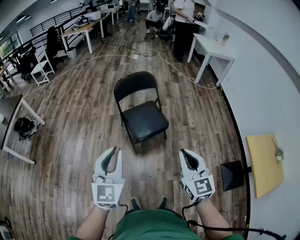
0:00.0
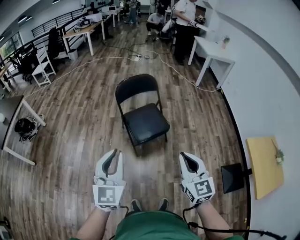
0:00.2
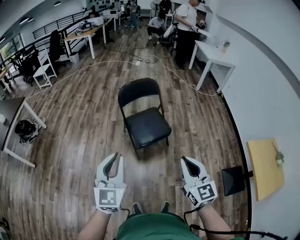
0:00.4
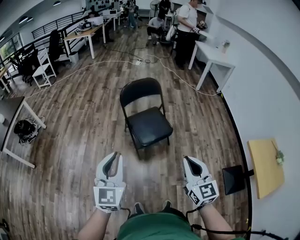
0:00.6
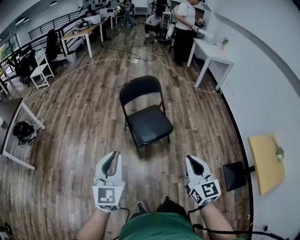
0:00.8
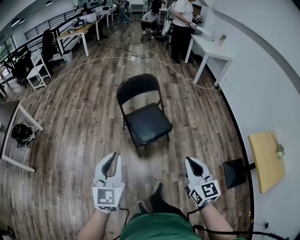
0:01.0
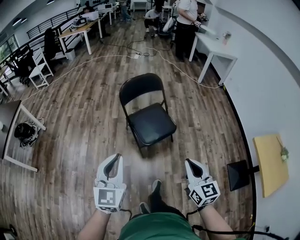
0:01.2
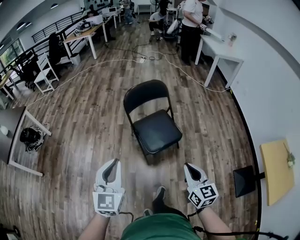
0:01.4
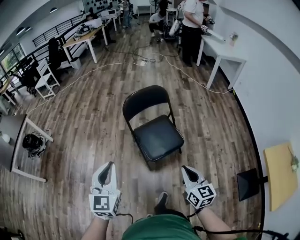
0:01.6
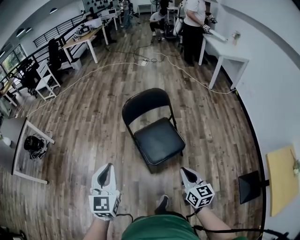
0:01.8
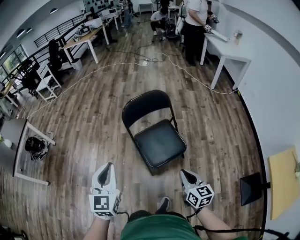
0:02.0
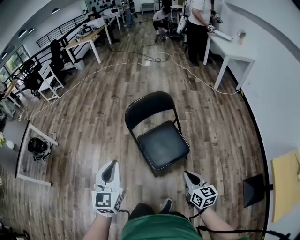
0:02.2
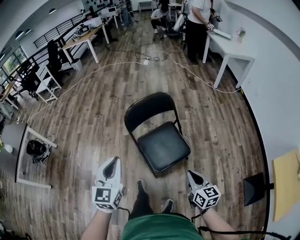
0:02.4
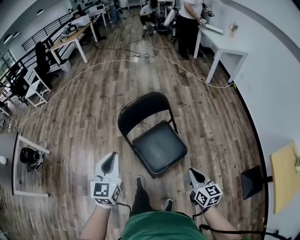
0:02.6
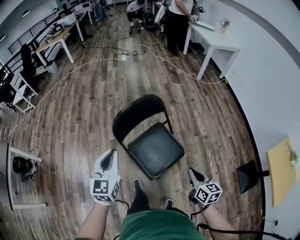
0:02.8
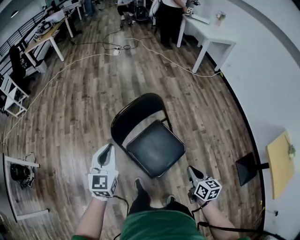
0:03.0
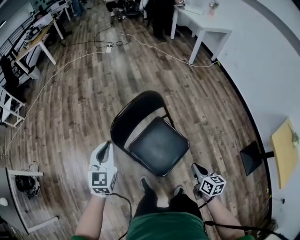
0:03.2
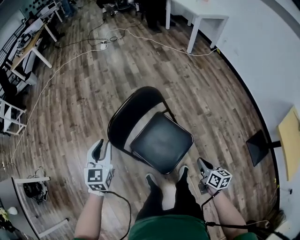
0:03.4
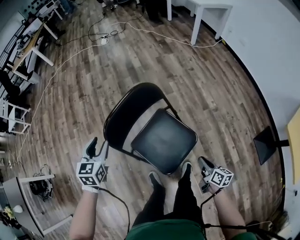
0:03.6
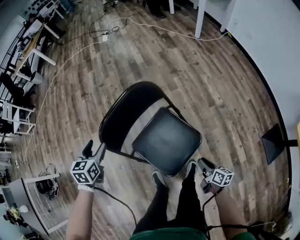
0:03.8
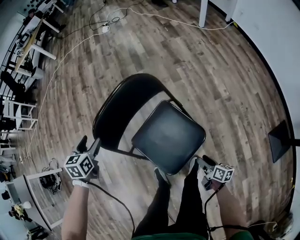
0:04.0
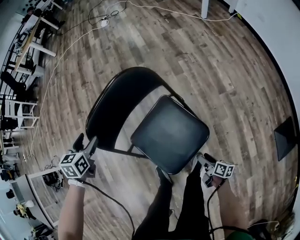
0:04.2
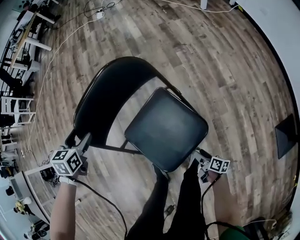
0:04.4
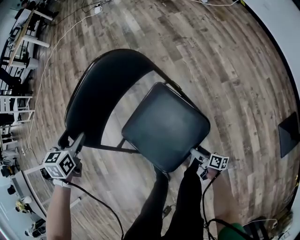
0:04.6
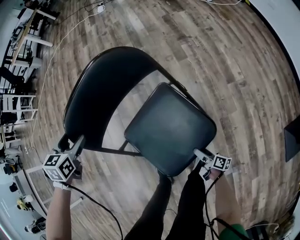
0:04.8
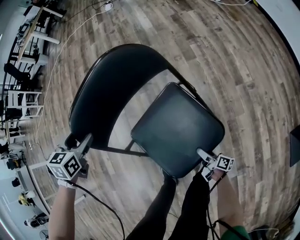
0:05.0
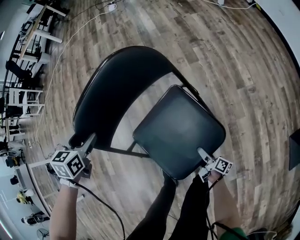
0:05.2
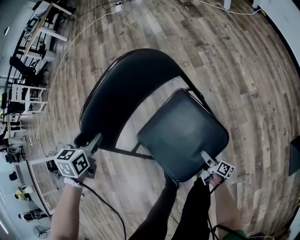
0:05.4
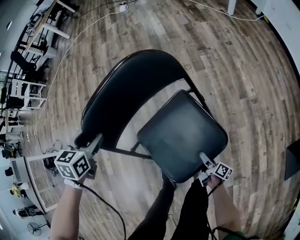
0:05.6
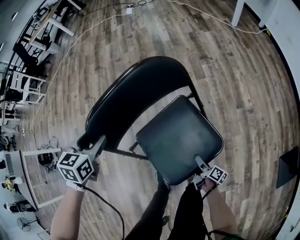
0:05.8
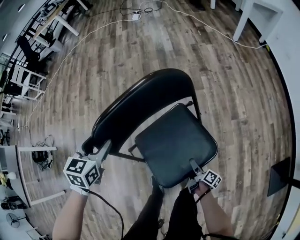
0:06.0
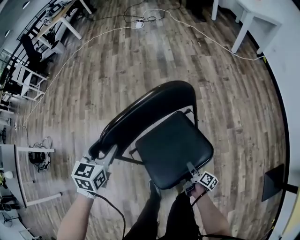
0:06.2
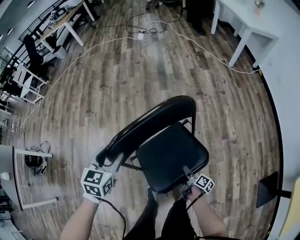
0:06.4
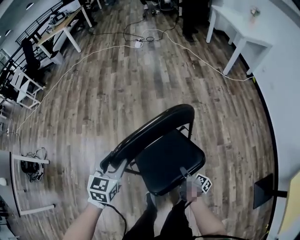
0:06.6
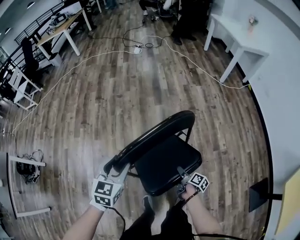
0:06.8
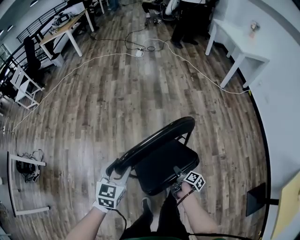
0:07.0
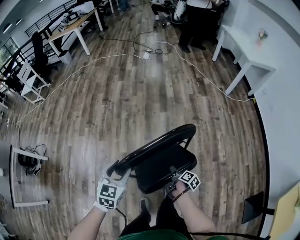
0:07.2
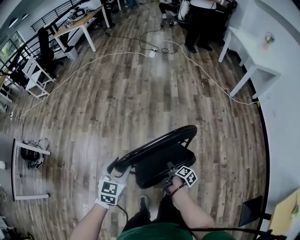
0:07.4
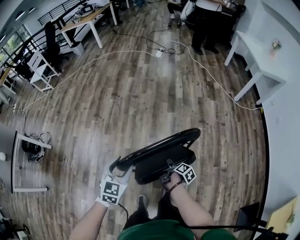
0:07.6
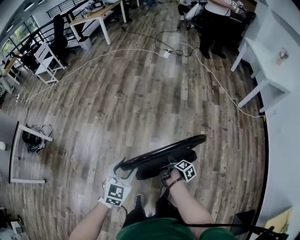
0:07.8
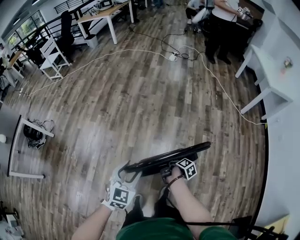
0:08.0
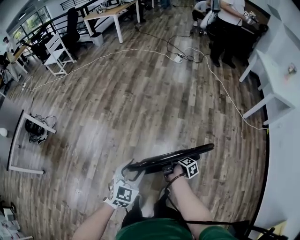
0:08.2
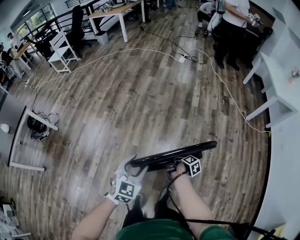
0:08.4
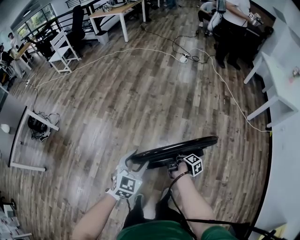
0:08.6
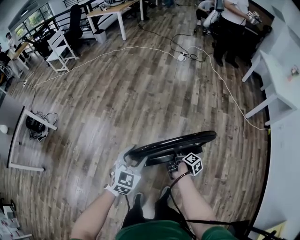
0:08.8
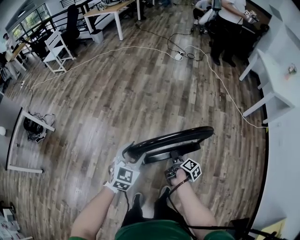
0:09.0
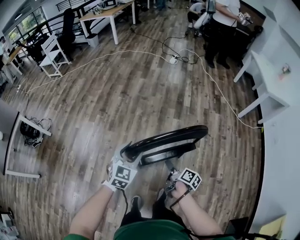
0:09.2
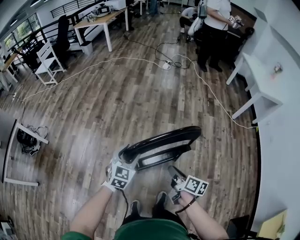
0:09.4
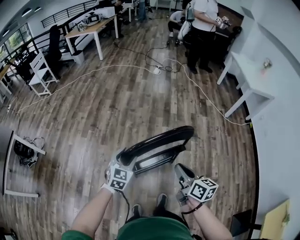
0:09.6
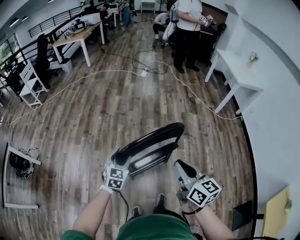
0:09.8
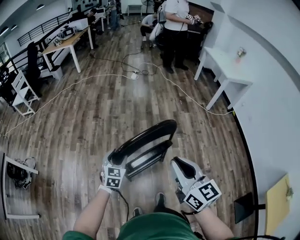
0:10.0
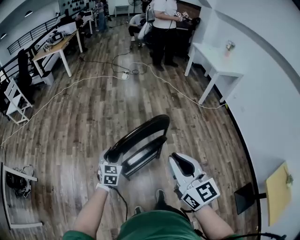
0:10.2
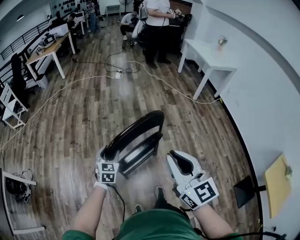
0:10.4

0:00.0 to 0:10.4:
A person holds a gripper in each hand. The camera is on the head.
0:00.0 to 0:01.4: The left gripper goes about 15 cm forward and to the left, while the right gripper travels forward and downward by about 15 cm.
0:01.4 to 0:03.0: The left gripper heads forward, covering some 50 cm, while the right gripper shifts about 35 cm forward and downward, and turns by approximately 30 degrees.
0:03.0 to 0:04.4: The right gripper travels downward by roughly 50 cm, rotates around the line of its fingers by approximately 40 degrees, clockwise from behind, and opens. Meanwhile the left gripper heads downward and forward, covering approximately 35 cm, angles its fingers downward, by roughly 40 degrees, and opens its fingers.
0:04.4 to 0:06.0: The right gripper is displaced forward and to the left by roughly 10 cm, and travels downward and back again, about 10 cm each way.
0:06.0 to 0:07.4: The left gripper travels upward by approximately 15 cm; the right gripper is displaced upward, forward and to the left by roughly 30 cm.
0:07.4 to 0:09.0: The left gripper ends up some 5 cm from where it was. The right gripper travels forward, to the left and upward by about 15 cm.
0:09.0 to 0:10.4: The right gripper travels upward by roughly 50 cm, rotates around the line of its fingers by about 80 degrees, counterclockwise from behind, and closes.

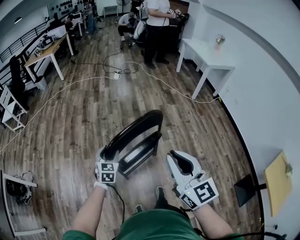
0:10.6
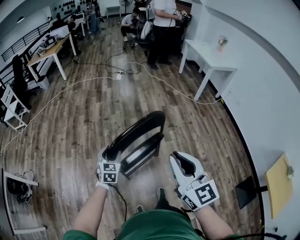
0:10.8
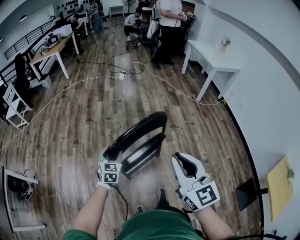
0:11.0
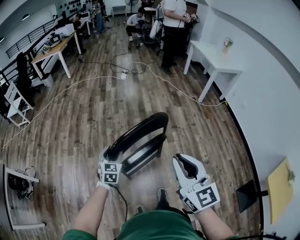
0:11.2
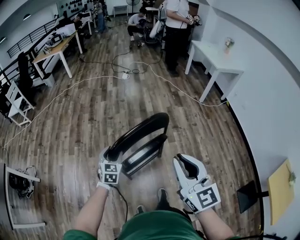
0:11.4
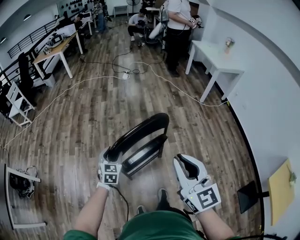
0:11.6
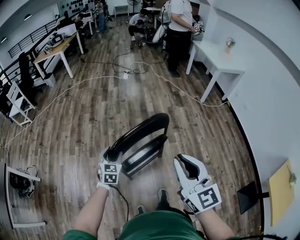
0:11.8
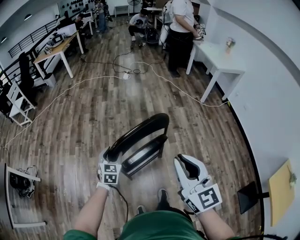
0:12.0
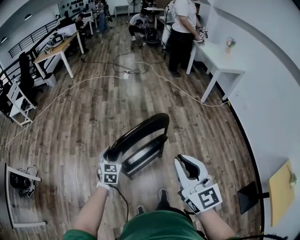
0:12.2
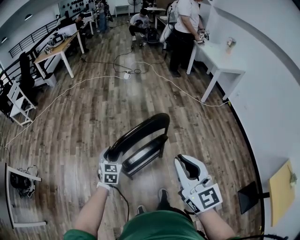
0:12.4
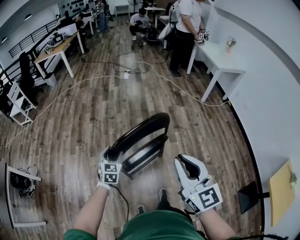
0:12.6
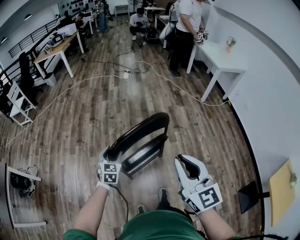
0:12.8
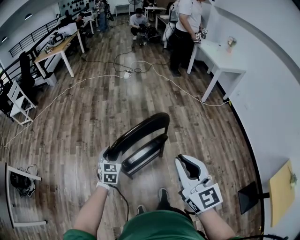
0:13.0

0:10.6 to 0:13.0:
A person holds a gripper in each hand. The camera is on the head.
0:10.6 to 0:11.8: There are only small adjustments of the grippers.
0:11.8 to 0:13.0: Neither gripper changes place.

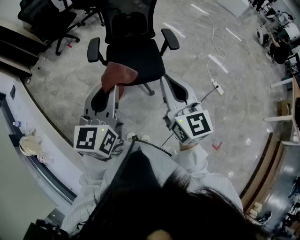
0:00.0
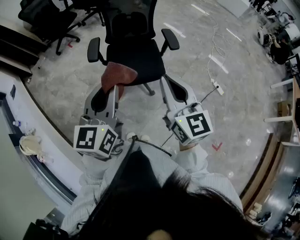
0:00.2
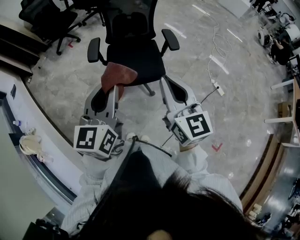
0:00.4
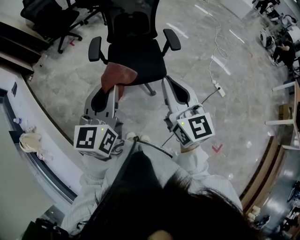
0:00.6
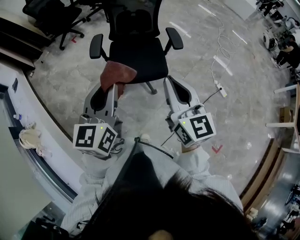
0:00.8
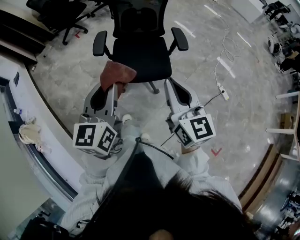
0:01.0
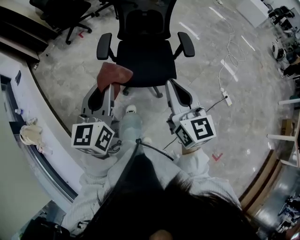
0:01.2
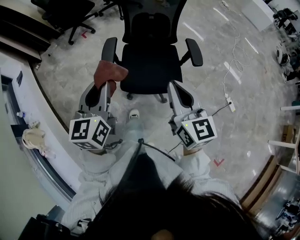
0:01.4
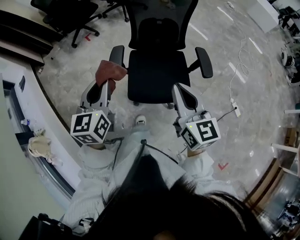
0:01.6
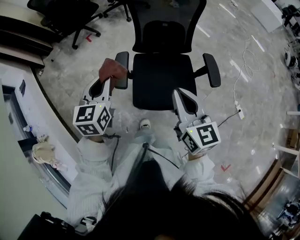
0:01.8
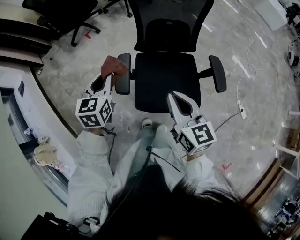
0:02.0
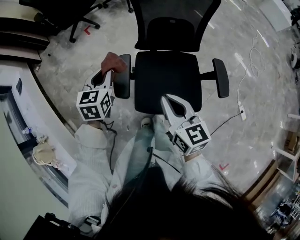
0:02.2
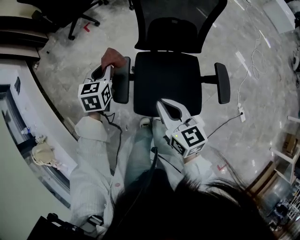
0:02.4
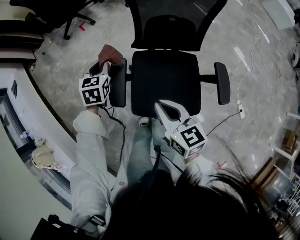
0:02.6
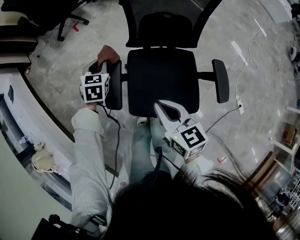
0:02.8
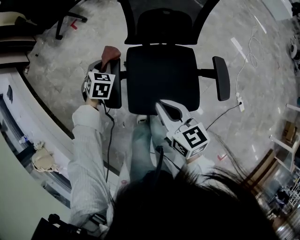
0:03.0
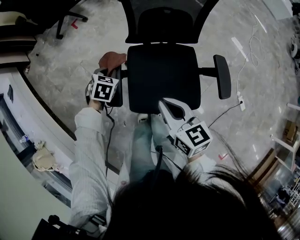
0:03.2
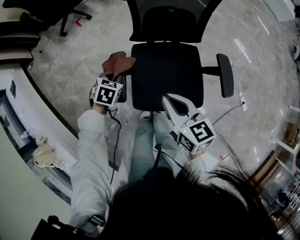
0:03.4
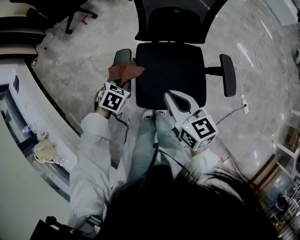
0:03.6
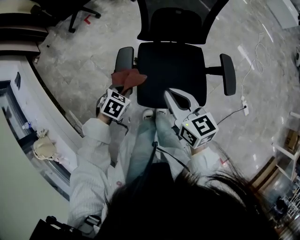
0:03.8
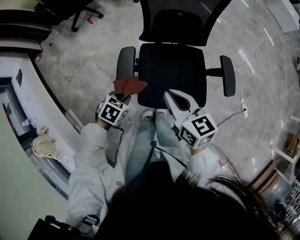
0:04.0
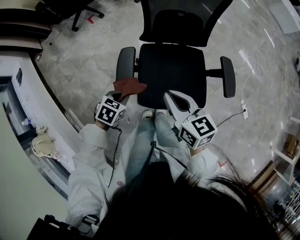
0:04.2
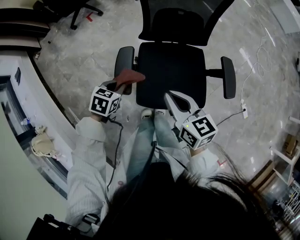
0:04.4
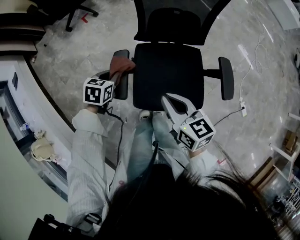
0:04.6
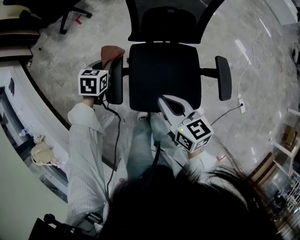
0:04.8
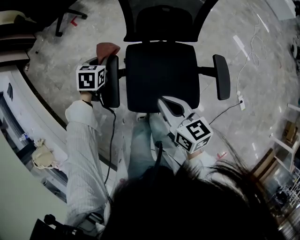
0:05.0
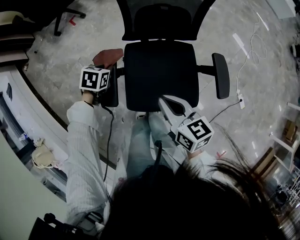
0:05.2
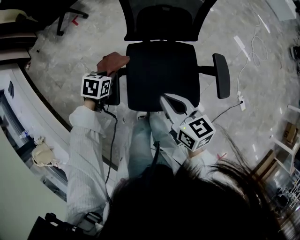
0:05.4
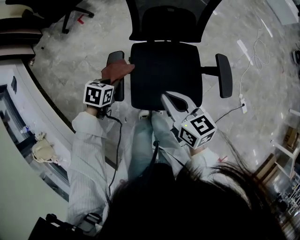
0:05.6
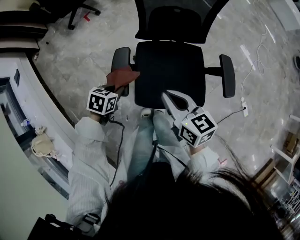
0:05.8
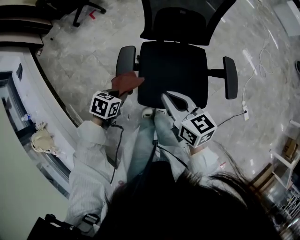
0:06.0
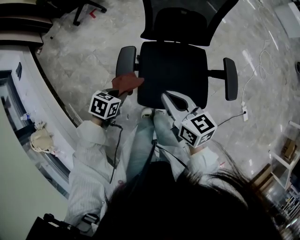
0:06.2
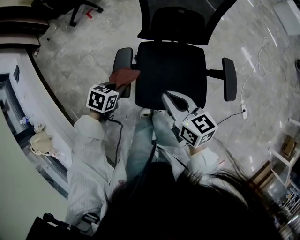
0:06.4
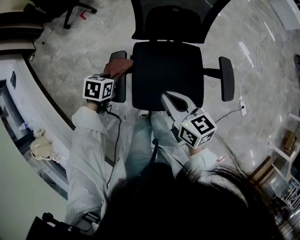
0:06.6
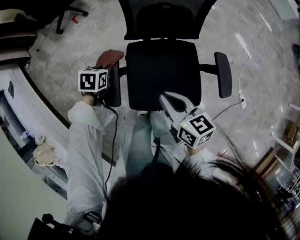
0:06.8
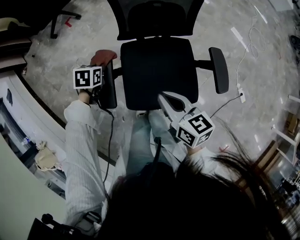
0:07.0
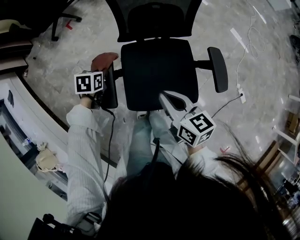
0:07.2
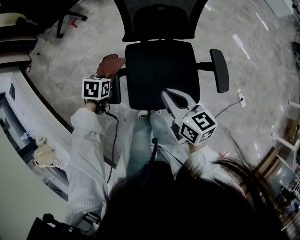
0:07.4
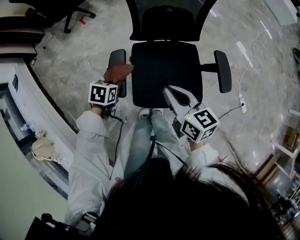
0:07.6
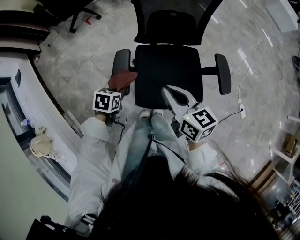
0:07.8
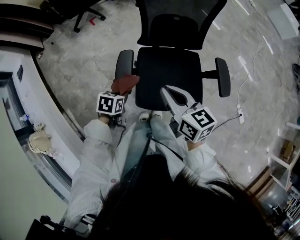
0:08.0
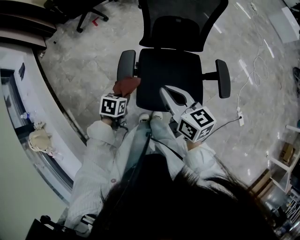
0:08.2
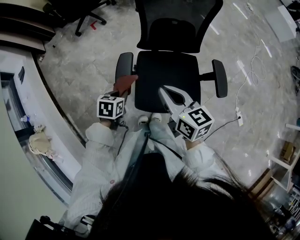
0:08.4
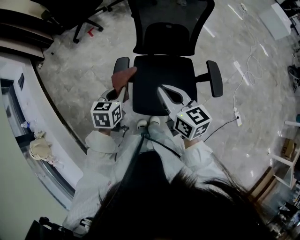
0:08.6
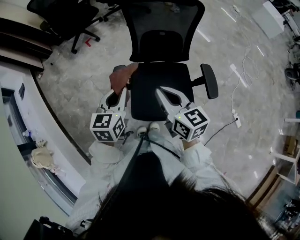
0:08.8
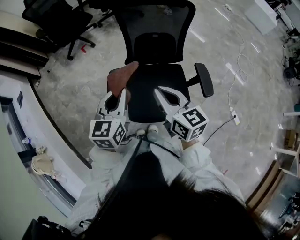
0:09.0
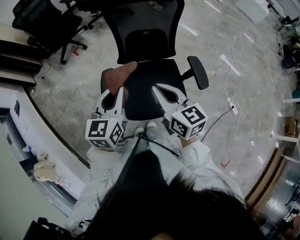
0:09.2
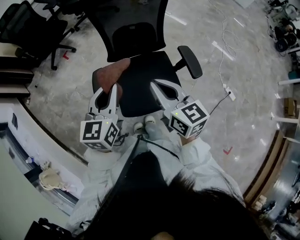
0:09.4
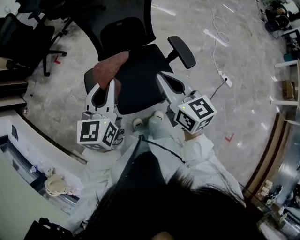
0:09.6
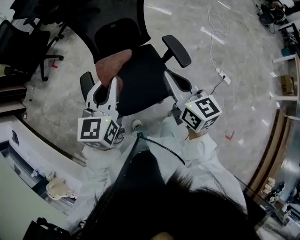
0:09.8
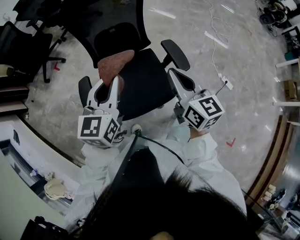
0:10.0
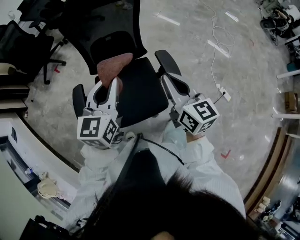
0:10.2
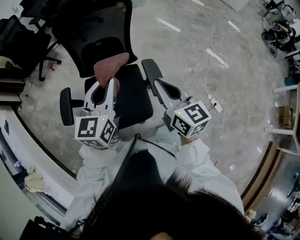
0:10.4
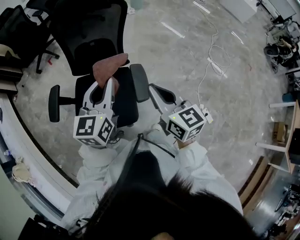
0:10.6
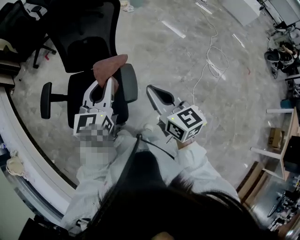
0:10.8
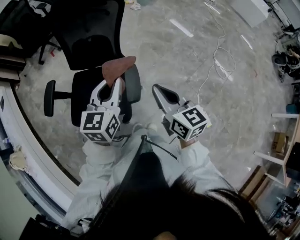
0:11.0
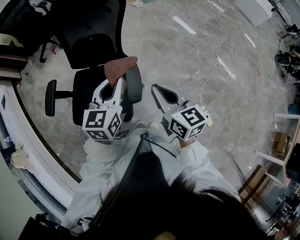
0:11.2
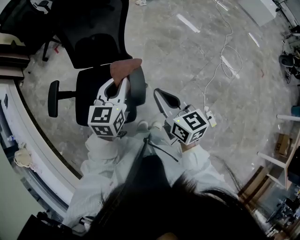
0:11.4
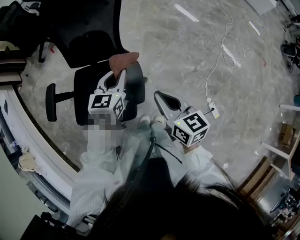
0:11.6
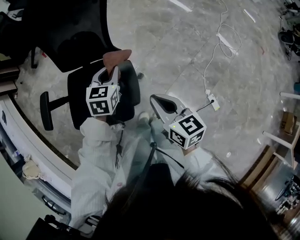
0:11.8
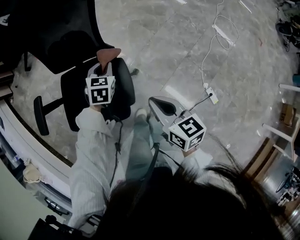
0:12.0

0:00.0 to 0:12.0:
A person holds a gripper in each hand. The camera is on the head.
0:00.0 to 0:01.6: The left gripper travels forward and to the left by about 30 cm. The right gripper shifts about 25 cm forward.
0:01.6 to 0:03.0: The right gripper goes approximately 30 cm forward and downward, and rotates about 30 degrees; the left gripper heads forward and downward, covering some 50 cm, and tips its fingers downward by some 40 degrees.
0:03.0 to 0:04.4: The left gripper shifts roughly 15 cm backward, and changes its angle by about 20 degrees.
0:04.4 to 0:06.0: The left gripper reaches about 15 cm forward, then returns.
0:06.0 to 0:07.6: The left gripper goes forward and returns, approximately 20 cm each way.
0:07.6 to 0:09.0: The left gripper shifts some 30 cm upward, and points its fingers some 50 degrees further upward. The right gripper heads upward, covering some 10 cm.
0:09.0 to 0:10.4: The grippers both shift to the right by some 35 cm.
0:10.4 to 0:12.0: The right gripper moves to the right and downward, approximately 25 cm, and turns by roughly 20 degrees. Meanwhile the left gripper goes roughly 40 cm downward, to the right and forward, and tips its fingers downward by some 40 degrees.
